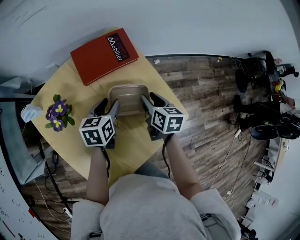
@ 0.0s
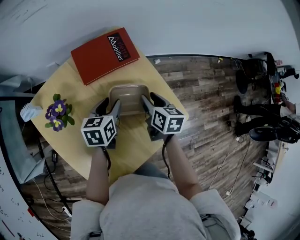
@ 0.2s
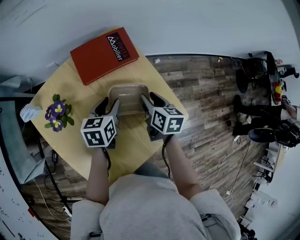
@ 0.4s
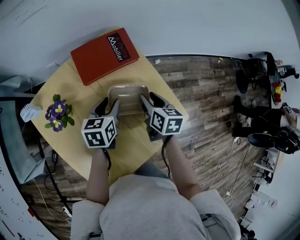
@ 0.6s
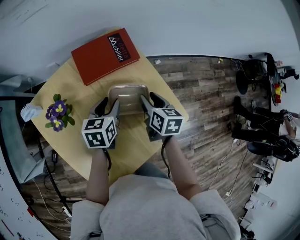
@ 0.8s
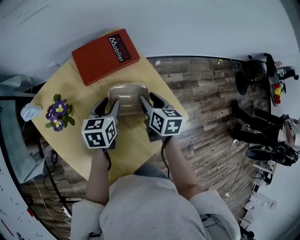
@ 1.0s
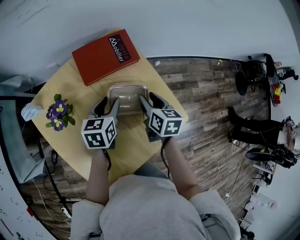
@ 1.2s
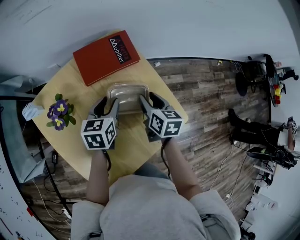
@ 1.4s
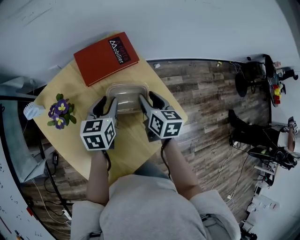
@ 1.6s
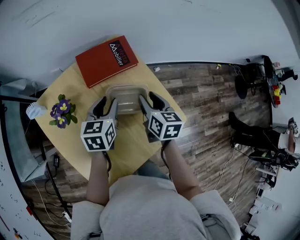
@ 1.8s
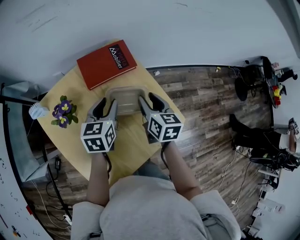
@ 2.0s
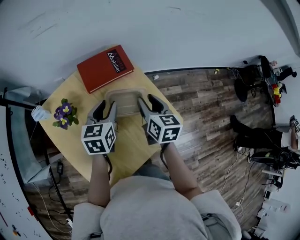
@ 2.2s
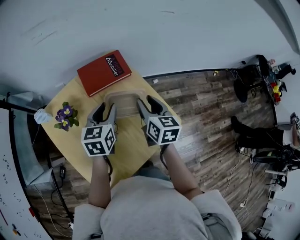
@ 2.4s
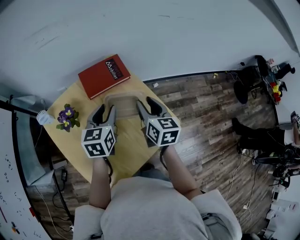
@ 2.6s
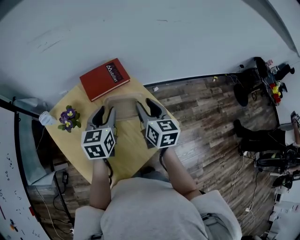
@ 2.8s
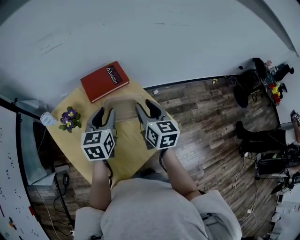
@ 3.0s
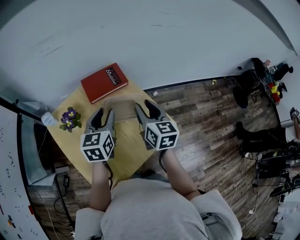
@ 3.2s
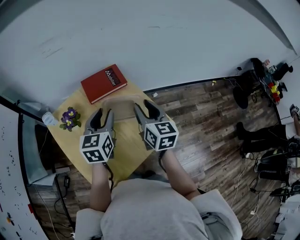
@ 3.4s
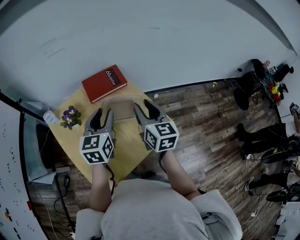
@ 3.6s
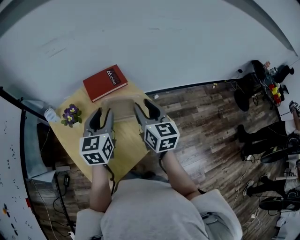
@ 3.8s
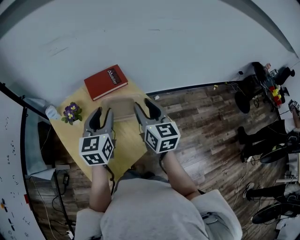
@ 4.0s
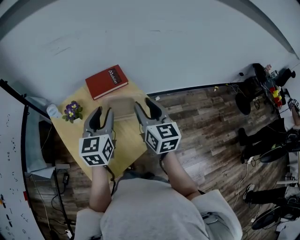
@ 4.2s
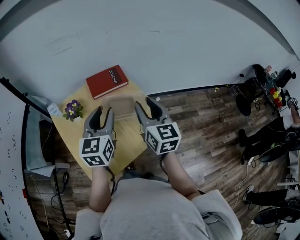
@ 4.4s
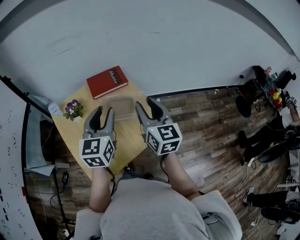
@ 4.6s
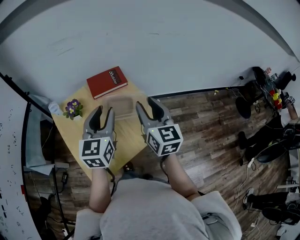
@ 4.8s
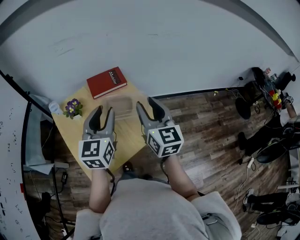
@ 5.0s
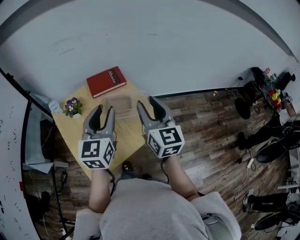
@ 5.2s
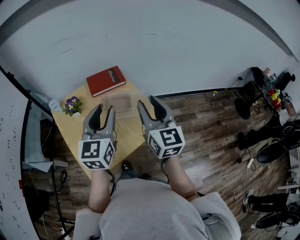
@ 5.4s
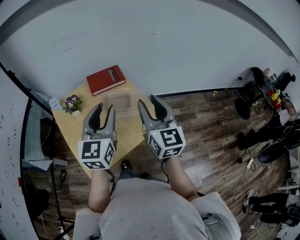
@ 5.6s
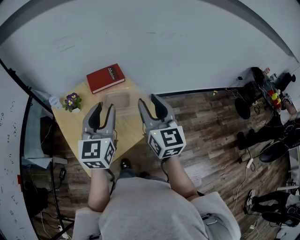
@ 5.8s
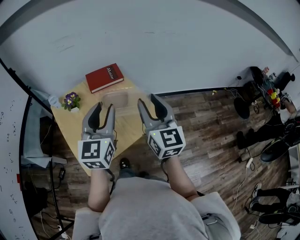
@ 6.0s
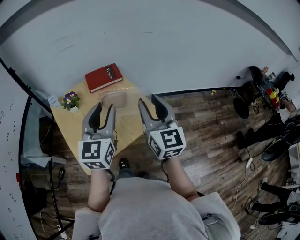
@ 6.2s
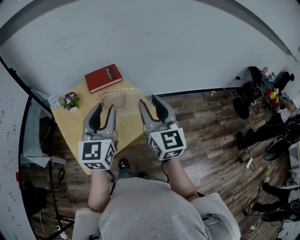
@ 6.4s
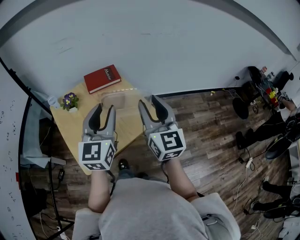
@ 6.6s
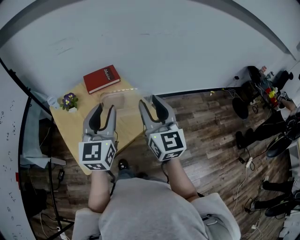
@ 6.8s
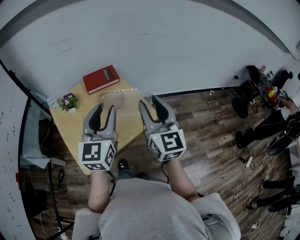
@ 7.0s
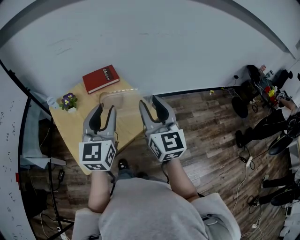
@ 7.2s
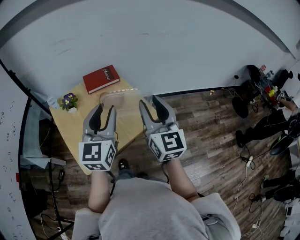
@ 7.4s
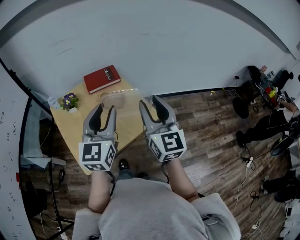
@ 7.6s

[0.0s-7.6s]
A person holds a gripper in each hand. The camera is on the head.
0.0s to 1.6s: There are only small adjustments of the grippers.
1.6s to 3.0s: Both grippers move upward, about 15 cm.
3.0s to 4.6s: The grippers both shift upward and backward by some 15 cm.
4.6s to 6.0s: The right gripper goes roughly 10 cm backward and upward, while the left gripper moves backward, roughly 10 cm.
6.0s to 7.6s: The grippers stay close to where they were, moving slightly.

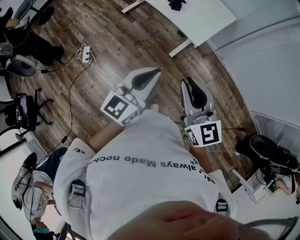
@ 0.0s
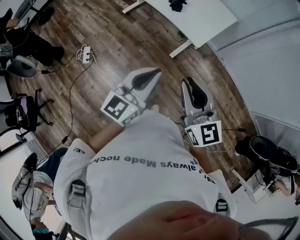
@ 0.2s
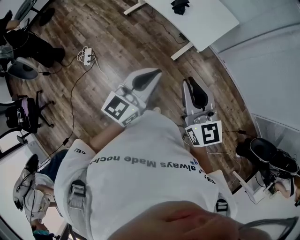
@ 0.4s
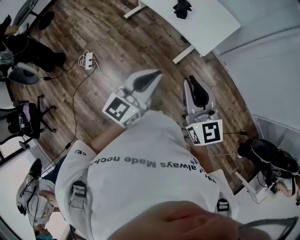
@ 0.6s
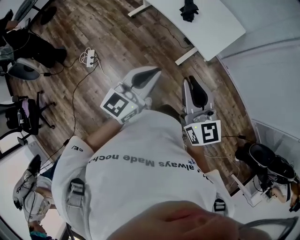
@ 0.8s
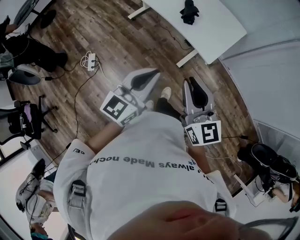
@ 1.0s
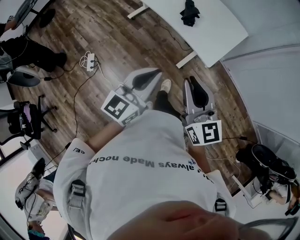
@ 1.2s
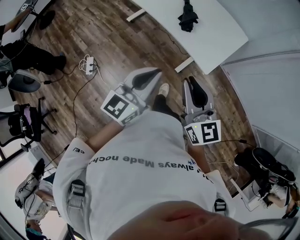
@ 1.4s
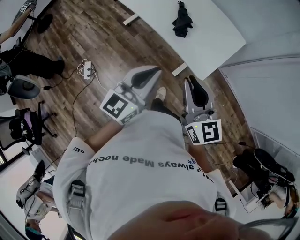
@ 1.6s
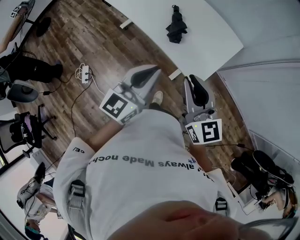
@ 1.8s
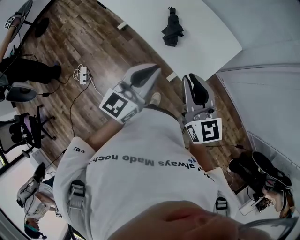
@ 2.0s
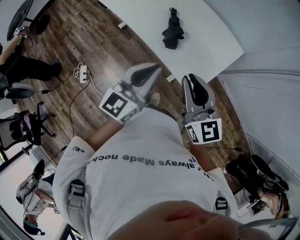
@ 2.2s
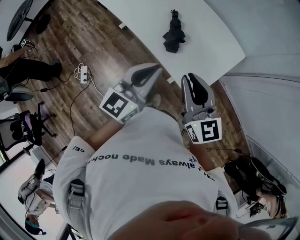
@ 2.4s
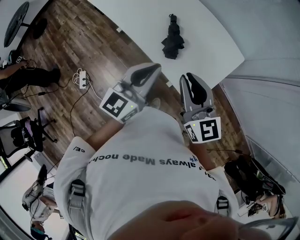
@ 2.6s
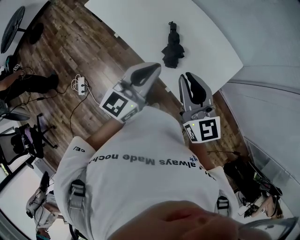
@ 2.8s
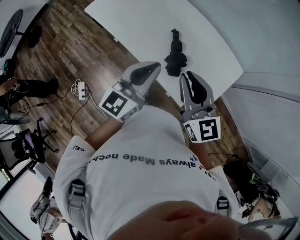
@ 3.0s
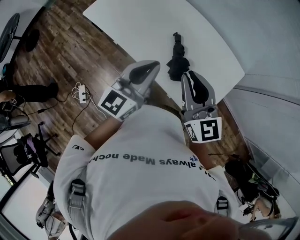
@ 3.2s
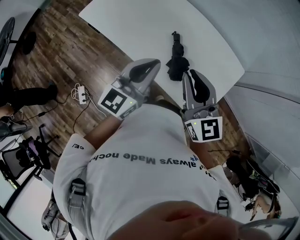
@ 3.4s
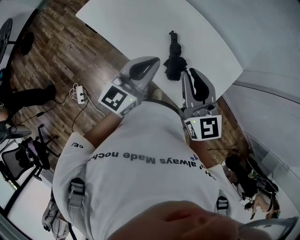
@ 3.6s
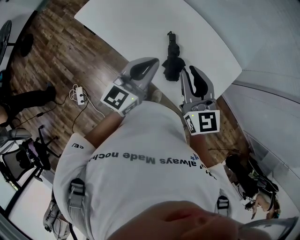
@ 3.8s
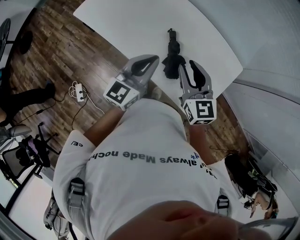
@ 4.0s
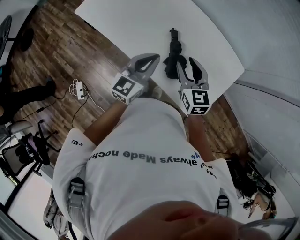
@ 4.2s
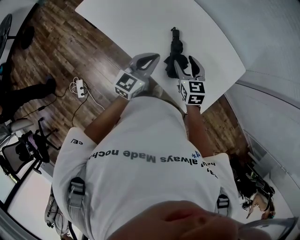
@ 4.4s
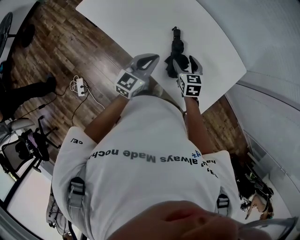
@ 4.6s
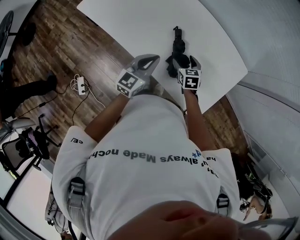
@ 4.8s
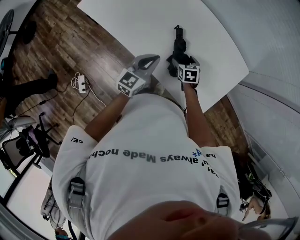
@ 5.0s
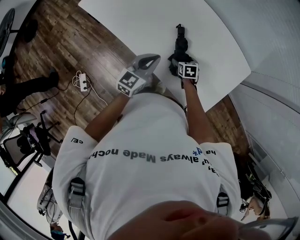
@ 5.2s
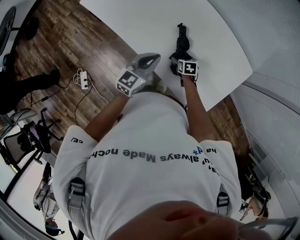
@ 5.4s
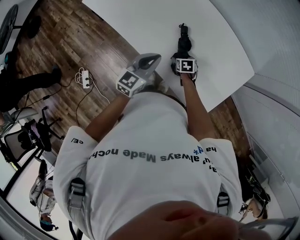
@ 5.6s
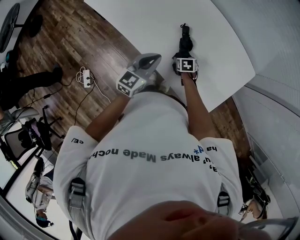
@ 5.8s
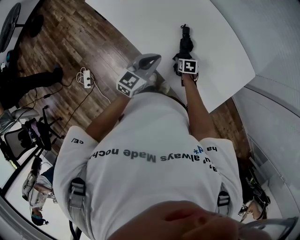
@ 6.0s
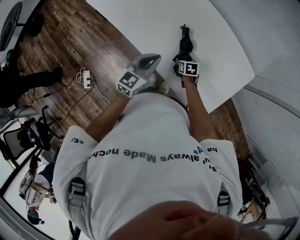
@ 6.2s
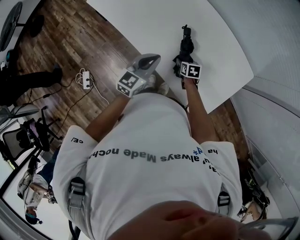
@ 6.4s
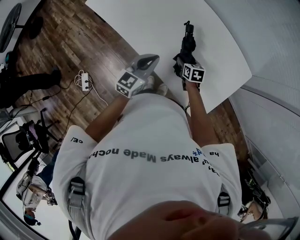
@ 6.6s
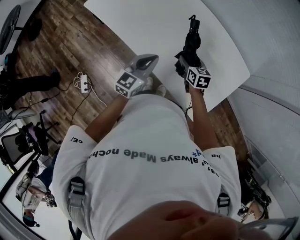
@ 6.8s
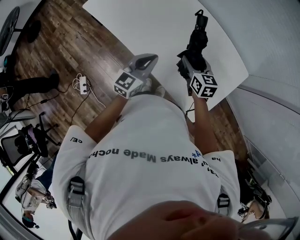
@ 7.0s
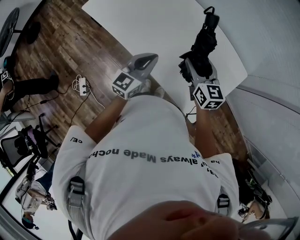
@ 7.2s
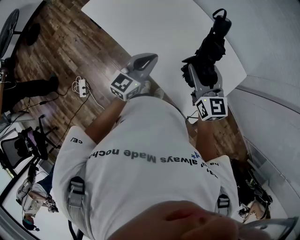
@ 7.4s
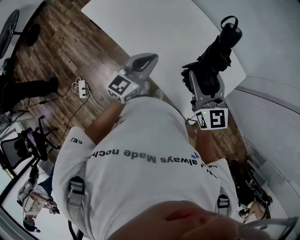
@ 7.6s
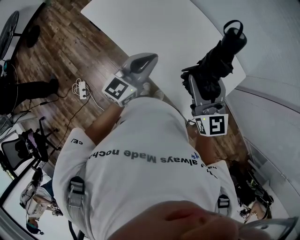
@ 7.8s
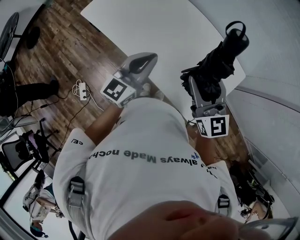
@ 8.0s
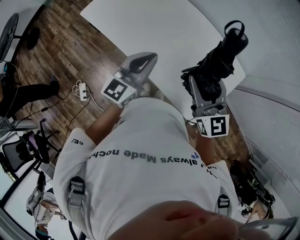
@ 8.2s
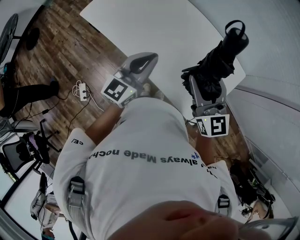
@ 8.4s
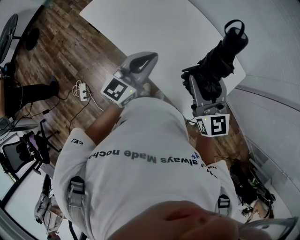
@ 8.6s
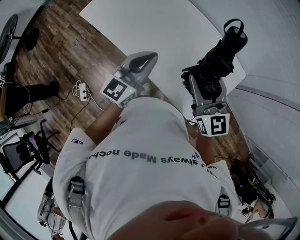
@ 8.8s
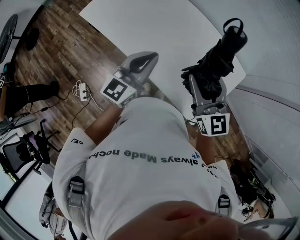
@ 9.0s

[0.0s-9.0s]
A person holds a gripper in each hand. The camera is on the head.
0.0s to 1.6s: Both grippers travel together forward, about 35 cm.
1.6s to 3.0s: The grippers both shift forward by roughly 40 cm.
3.0s to 4.4s: Both grippers move downward and forward, approximately 25 cm. The right gripper changes its angle by roughly 30 degrees, and opens.
4.4s to 6.0s: The left gripper goes about 5 cm downward, while the right gripper moves downward, approximately 25 cm, tilts its fingers some 30 degrees downward, and opens and closes again.
6.0s to 7.6s: The right gripper goes some 40 cm upward, and tips its fingers upward by roughly 60 degrees. The left gripper travels upward by some 10 cm.
7.6s to 9.0s: The left gripper shifts approximately 5 cm upward.

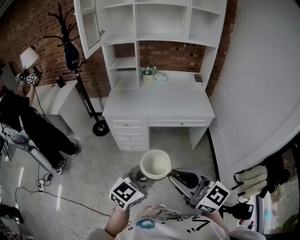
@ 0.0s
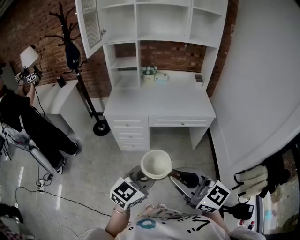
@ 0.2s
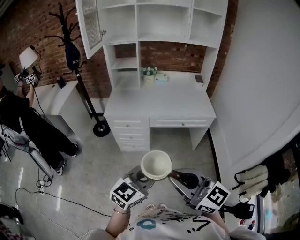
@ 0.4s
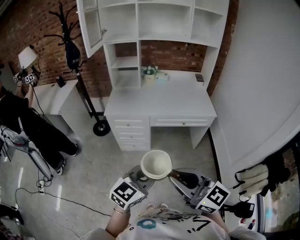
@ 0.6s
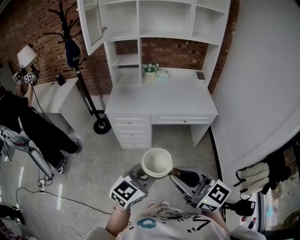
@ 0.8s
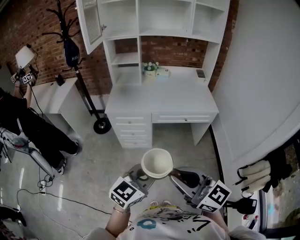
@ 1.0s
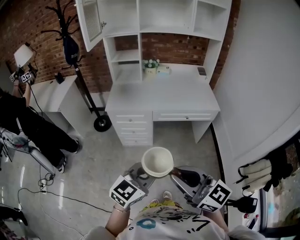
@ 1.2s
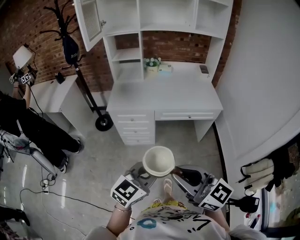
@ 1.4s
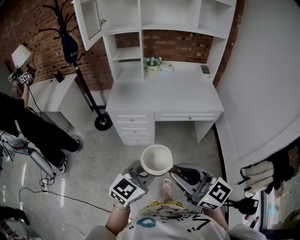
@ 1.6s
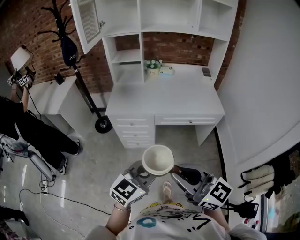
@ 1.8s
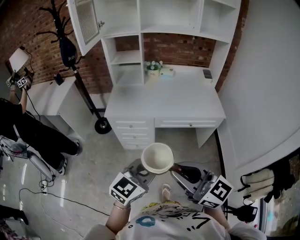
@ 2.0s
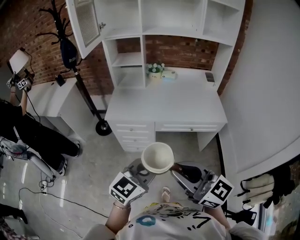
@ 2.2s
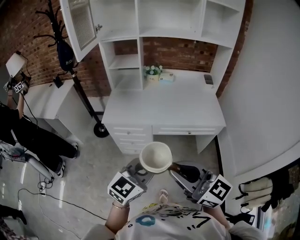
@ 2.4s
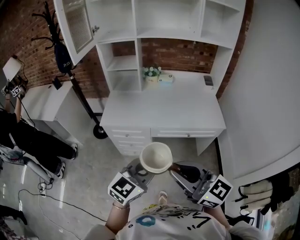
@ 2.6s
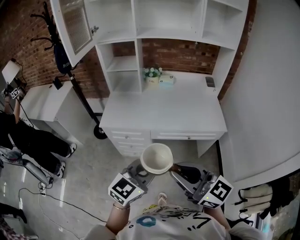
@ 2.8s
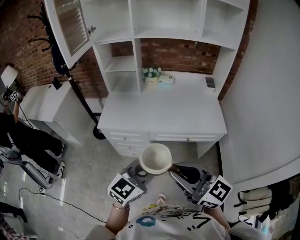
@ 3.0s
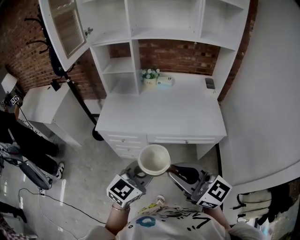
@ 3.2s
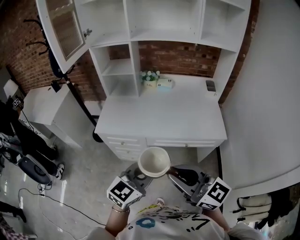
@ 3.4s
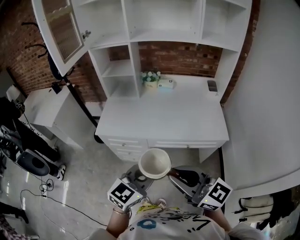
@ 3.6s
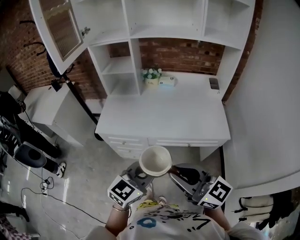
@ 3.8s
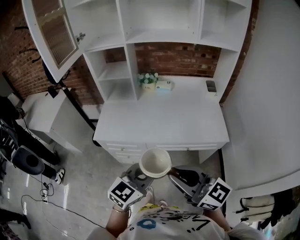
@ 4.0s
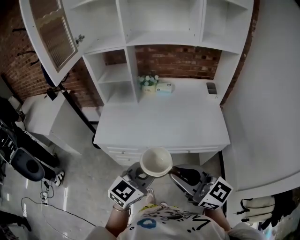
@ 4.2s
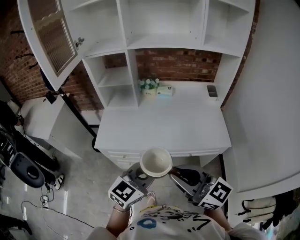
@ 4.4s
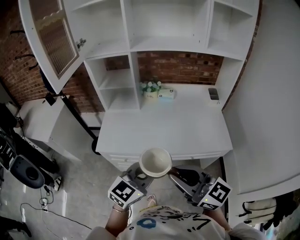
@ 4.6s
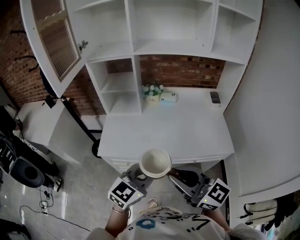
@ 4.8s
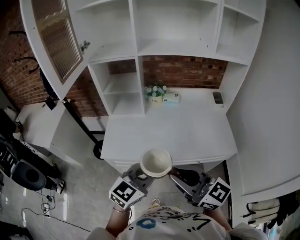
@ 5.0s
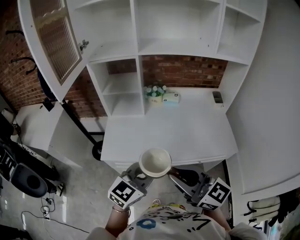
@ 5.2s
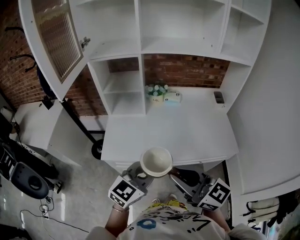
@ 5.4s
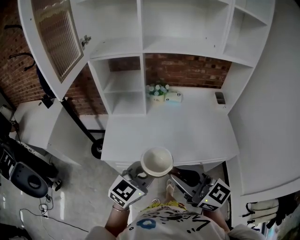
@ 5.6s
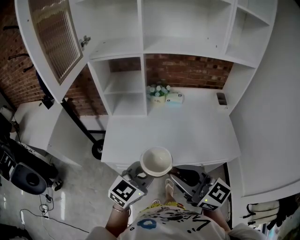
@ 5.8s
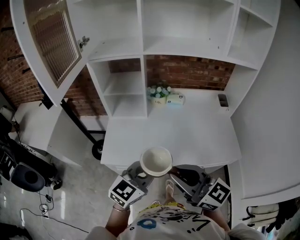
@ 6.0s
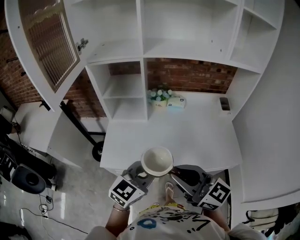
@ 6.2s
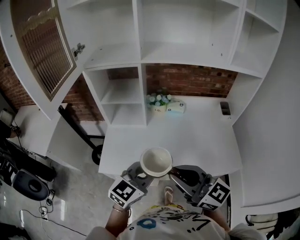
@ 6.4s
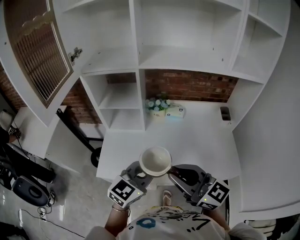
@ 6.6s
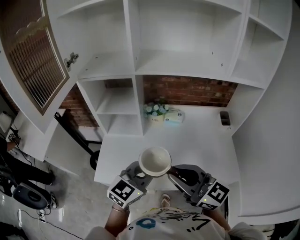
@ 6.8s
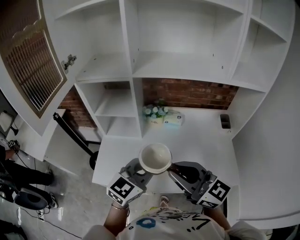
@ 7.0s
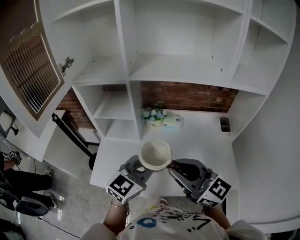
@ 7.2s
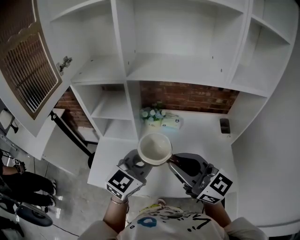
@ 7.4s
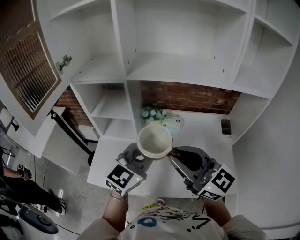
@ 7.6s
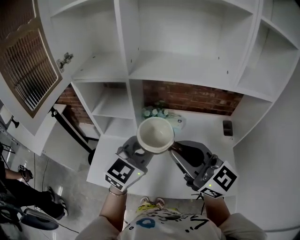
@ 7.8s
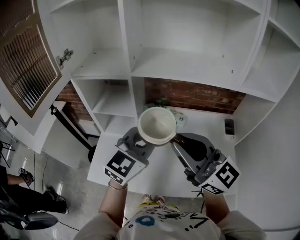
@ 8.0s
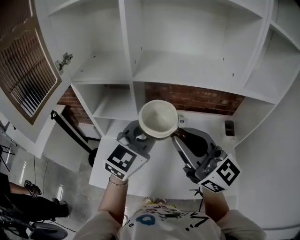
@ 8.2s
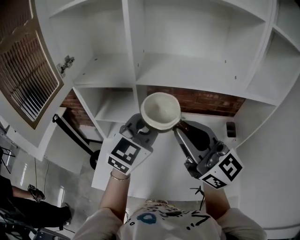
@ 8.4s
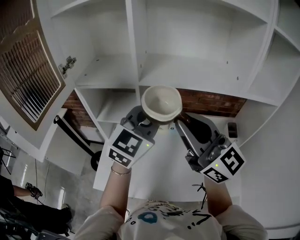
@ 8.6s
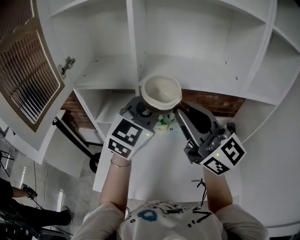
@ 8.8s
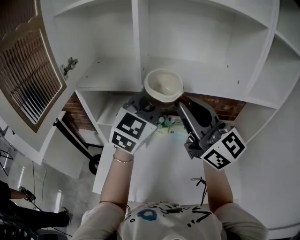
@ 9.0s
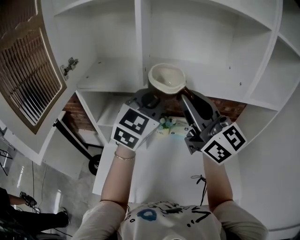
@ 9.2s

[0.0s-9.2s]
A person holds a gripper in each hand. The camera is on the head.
0.0s to 1.6s: Both grippers travel together to the left and forward, roughly 10 cm.
1.6s to 3.0s: Both grippers travel together forward and to the right, about 20 cm.
3.0s to 4.6s: Both grippers travel together forward, approximately 15 cm.
4.6s to 6.2s: Both grippers move forward and to the left, approximately 15 cm.
6.2s to 7.6s: The two grippers go approximately 20 cm forward, to the right and upward.
7.6s to 9.2s: Both grippers travel together forward and upward, some 20 cm.
